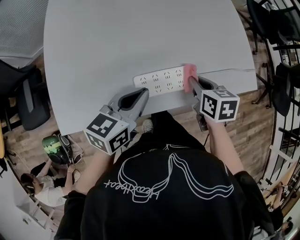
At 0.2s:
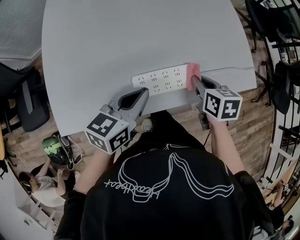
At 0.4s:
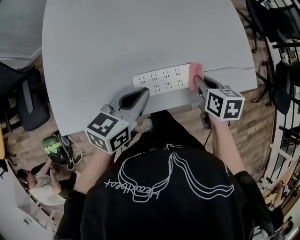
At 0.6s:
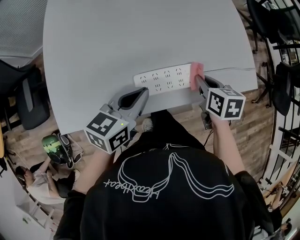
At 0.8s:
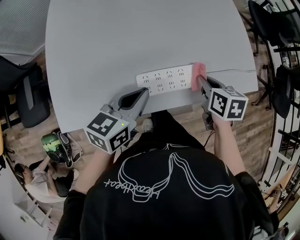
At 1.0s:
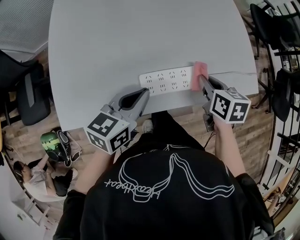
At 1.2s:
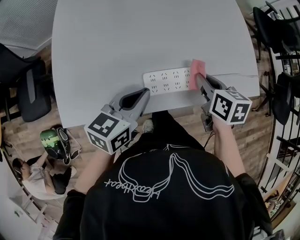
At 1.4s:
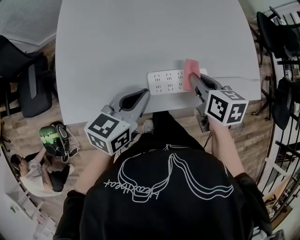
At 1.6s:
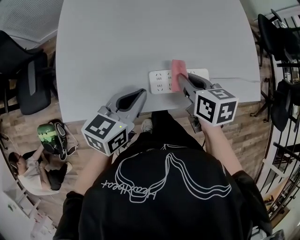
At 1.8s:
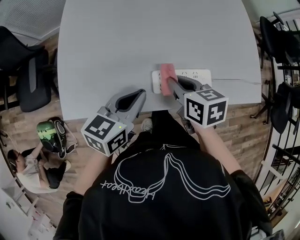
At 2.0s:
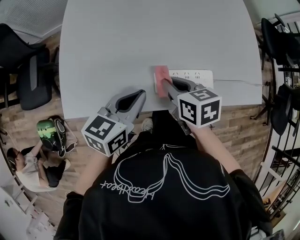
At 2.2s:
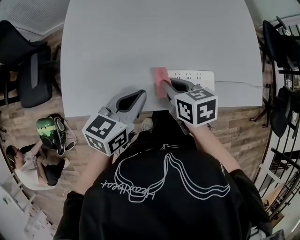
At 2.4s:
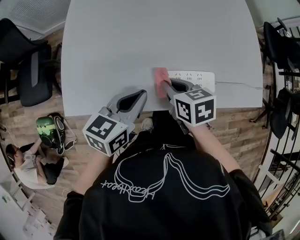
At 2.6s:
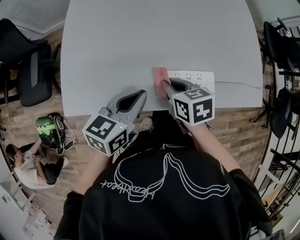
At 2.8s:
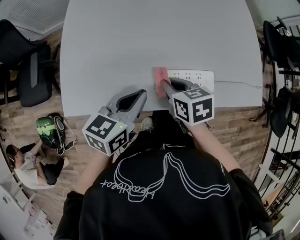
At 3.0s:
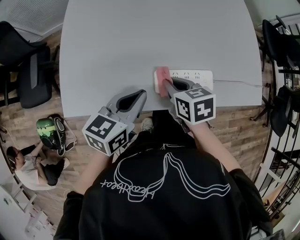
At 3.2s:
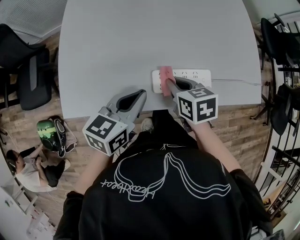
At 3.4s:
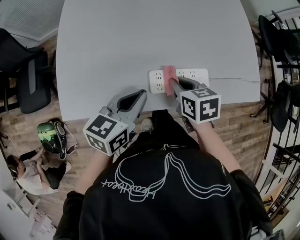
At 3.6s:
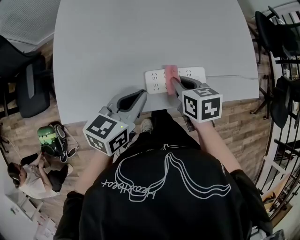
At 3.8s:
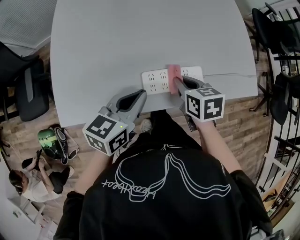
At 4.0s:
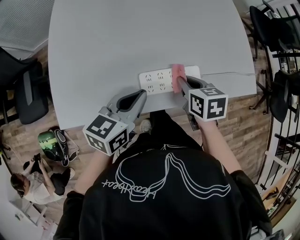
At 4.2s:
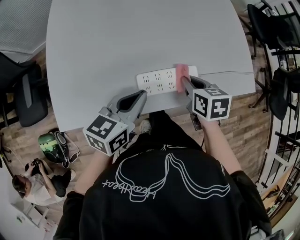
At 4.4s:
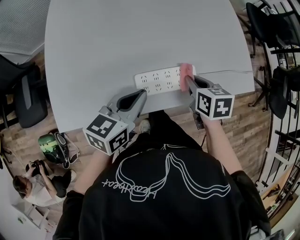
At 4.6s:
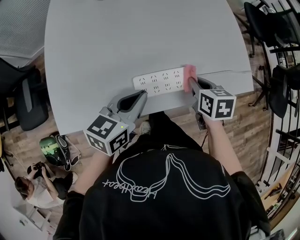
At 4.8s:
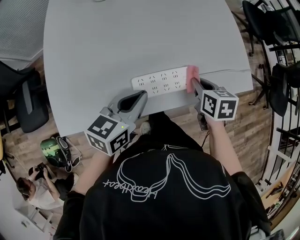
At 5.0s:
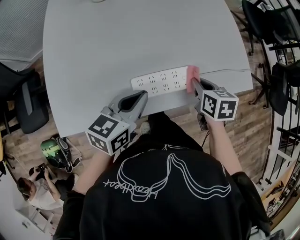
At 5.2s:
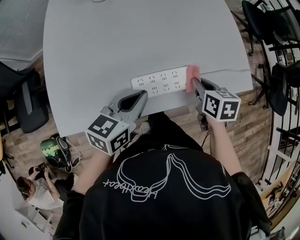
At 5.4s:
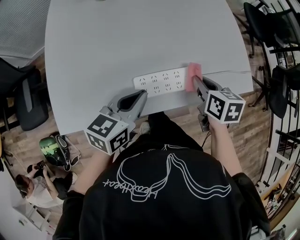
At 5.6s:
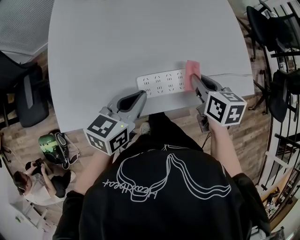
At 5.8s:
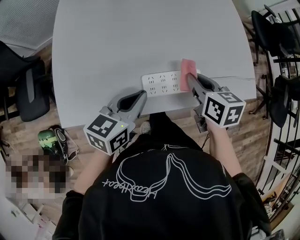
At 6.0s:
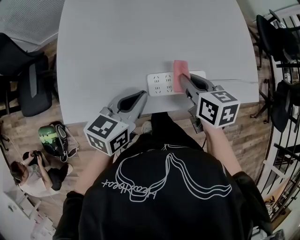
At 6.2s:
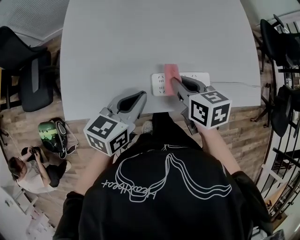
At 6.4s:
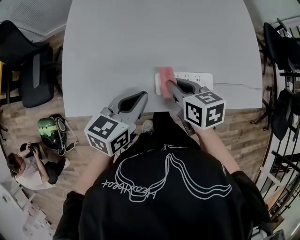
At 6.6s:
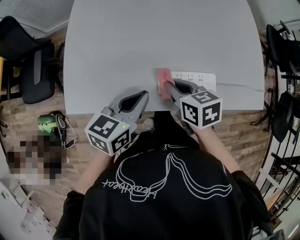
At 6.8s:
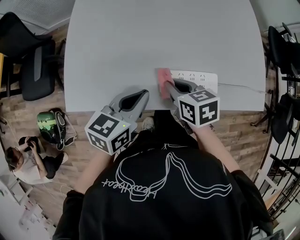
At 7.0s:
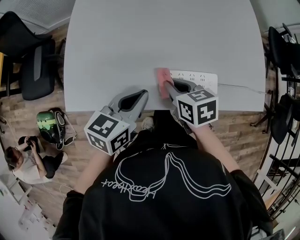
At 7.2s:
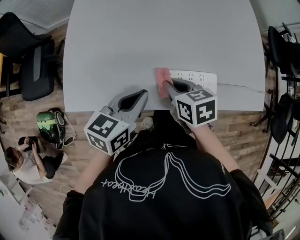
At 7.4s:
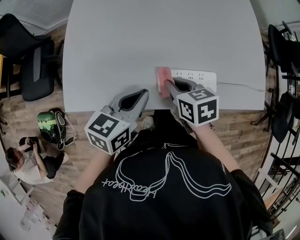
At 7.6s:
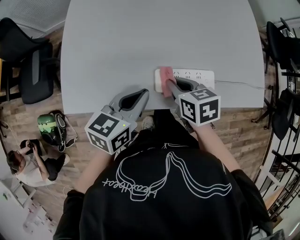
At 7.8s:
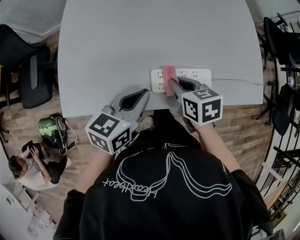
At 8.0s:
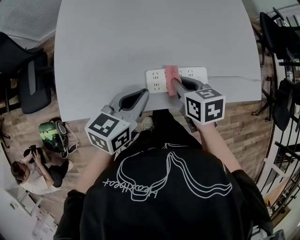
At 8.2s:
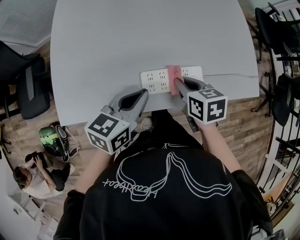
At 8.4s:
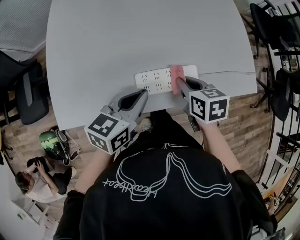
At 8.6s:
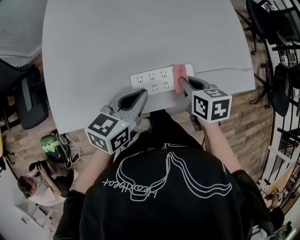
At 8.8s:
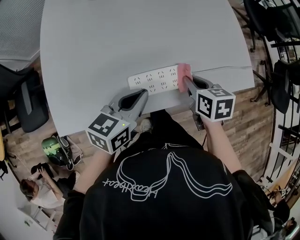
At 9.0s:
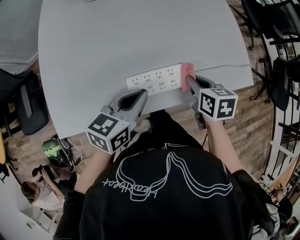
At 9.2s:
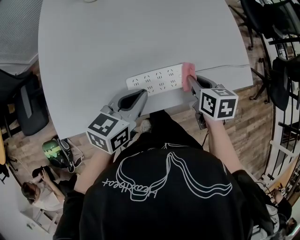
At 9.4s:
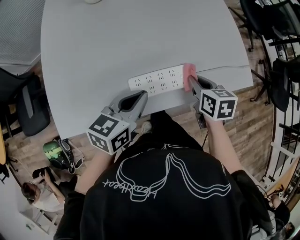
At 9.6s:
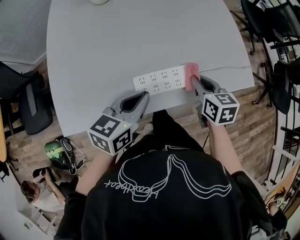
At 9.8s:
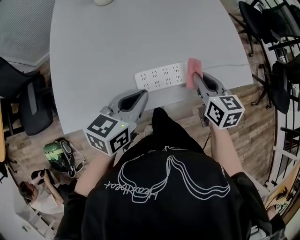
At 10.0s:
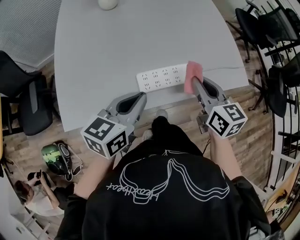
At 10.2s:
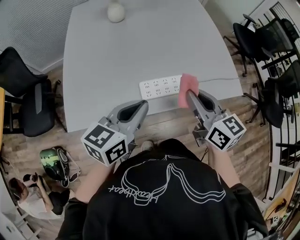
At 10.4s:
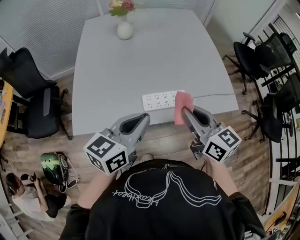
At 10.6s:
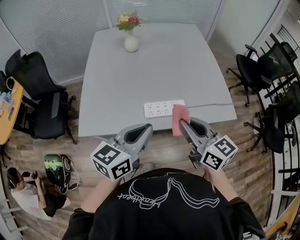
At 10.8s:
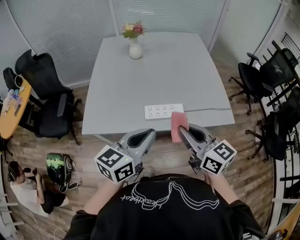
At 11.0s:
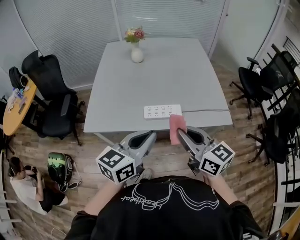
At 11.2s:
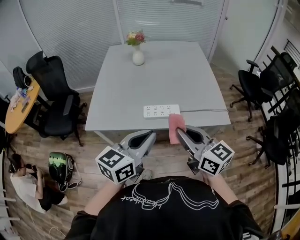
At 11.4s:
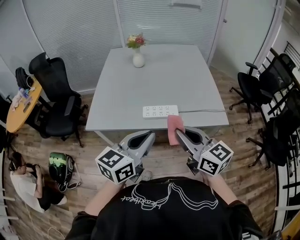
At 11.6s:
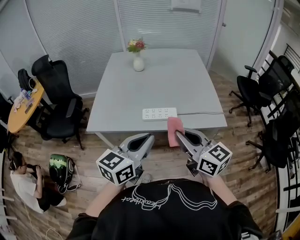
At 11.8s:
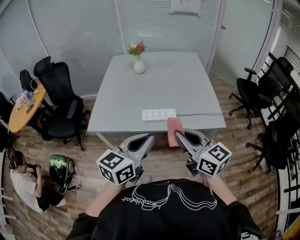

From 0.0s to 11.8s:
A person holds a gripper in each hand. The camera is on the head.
From 0.0s to 1.4s: The right gripper shifts by some 5 cm.
From 1.4s to 3.0s: The right gripper moves to the left, about 10 cm.
From 3.0s to 4.4s: The left gripper goes roughly 5 cm to the right, while the right gripper heads to the right, covering approximately 15 cm.
From 4.4s to 6.0s: The right gripper shifts roughly 10 cm to the left and upward.
From 6.0s to 7.4s: The right gripper moves to the left and downward, roughly 10 cm.
From 7.4s to 8.8s: The left gripper travels to the right by about 10 cm. Meanwhile the right gripper heads to the right, covering about 15 cm, and turns by about 20 degrees.
From 8.8s to 10.4s: Both grippers travel together upward and backward, roughly 25 cm. The right gripper tilts its fingers approximately 40 degrees upward.
From 10.4s to 11.8s: The left gripper goes roughly 25 cm backward, to the right and upward. Meanwhile the right gripper heads backward and upward, covering about 20 cm.

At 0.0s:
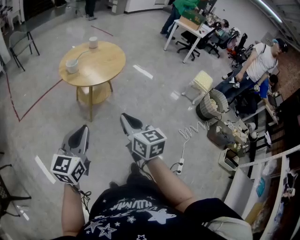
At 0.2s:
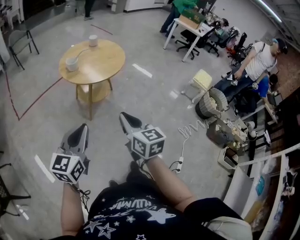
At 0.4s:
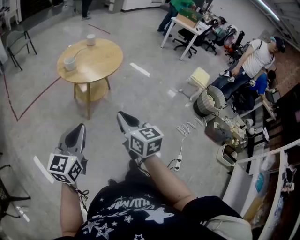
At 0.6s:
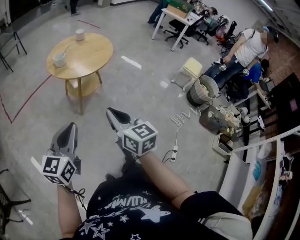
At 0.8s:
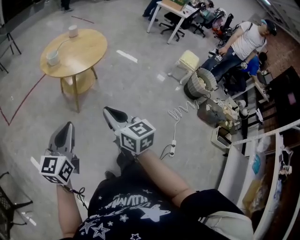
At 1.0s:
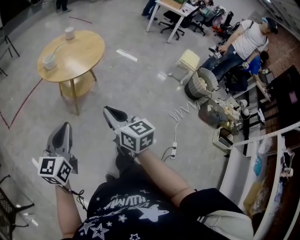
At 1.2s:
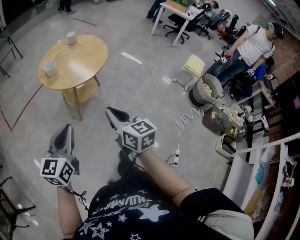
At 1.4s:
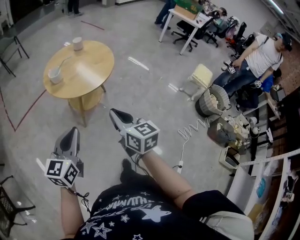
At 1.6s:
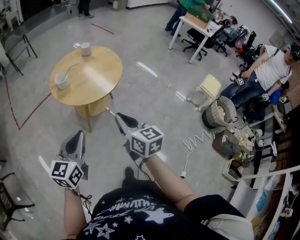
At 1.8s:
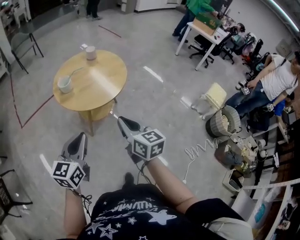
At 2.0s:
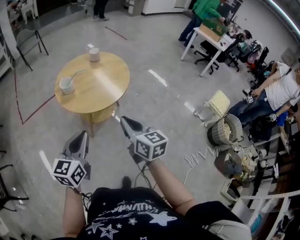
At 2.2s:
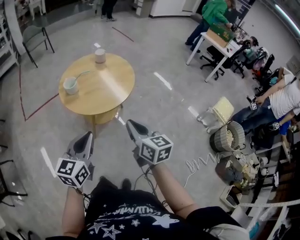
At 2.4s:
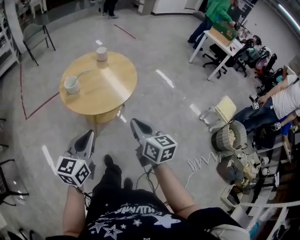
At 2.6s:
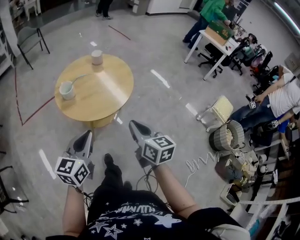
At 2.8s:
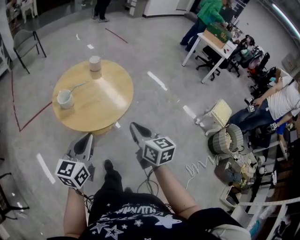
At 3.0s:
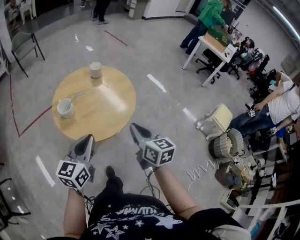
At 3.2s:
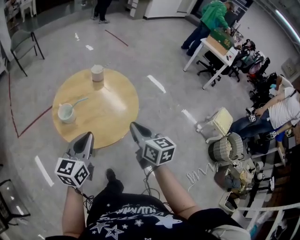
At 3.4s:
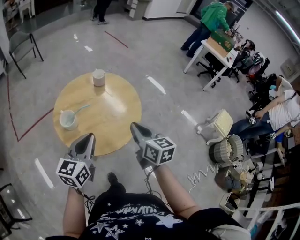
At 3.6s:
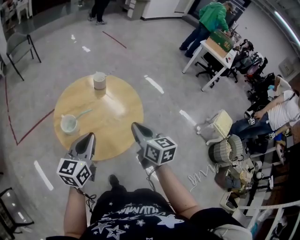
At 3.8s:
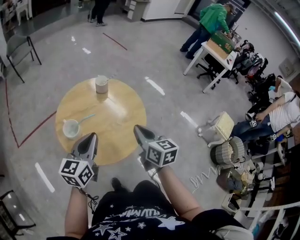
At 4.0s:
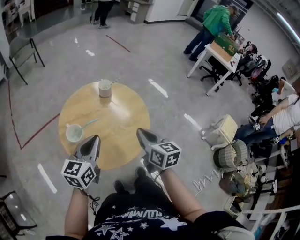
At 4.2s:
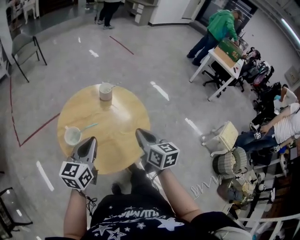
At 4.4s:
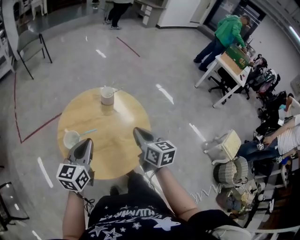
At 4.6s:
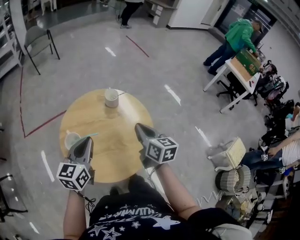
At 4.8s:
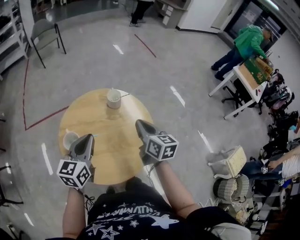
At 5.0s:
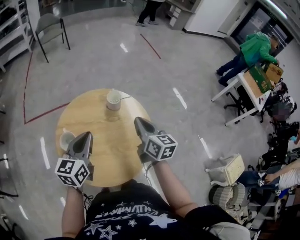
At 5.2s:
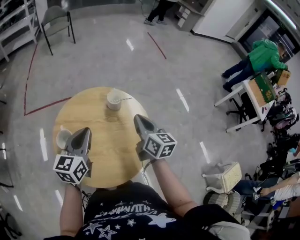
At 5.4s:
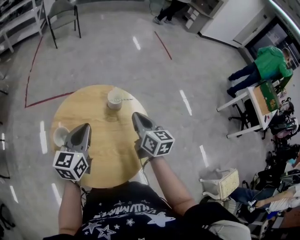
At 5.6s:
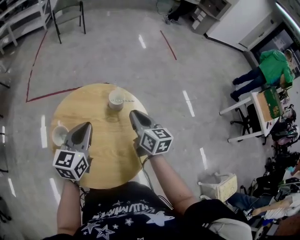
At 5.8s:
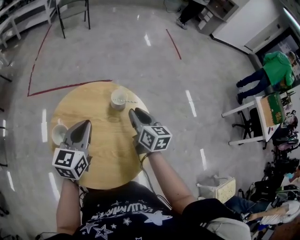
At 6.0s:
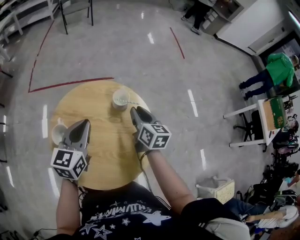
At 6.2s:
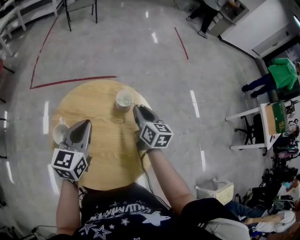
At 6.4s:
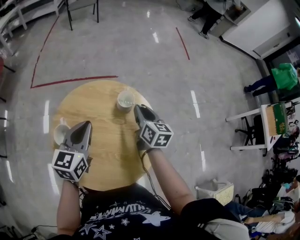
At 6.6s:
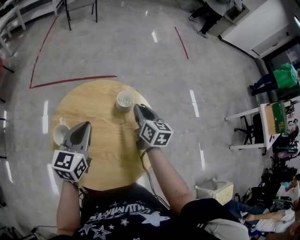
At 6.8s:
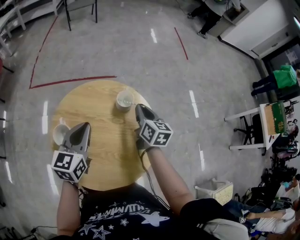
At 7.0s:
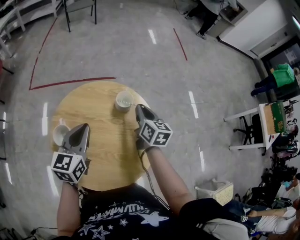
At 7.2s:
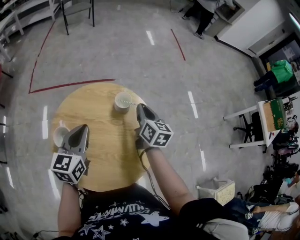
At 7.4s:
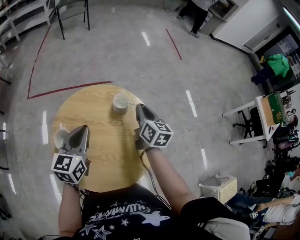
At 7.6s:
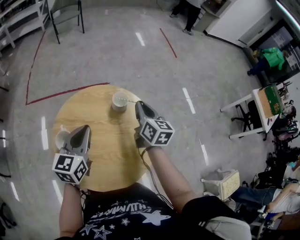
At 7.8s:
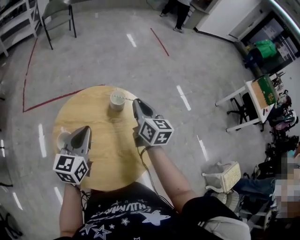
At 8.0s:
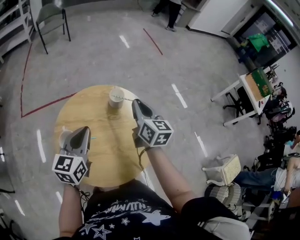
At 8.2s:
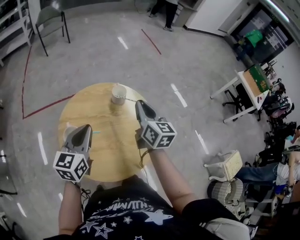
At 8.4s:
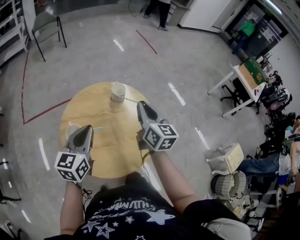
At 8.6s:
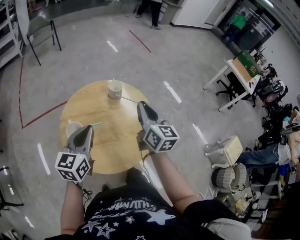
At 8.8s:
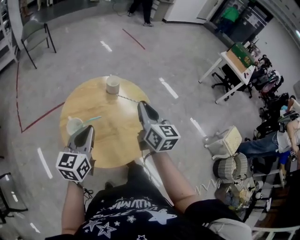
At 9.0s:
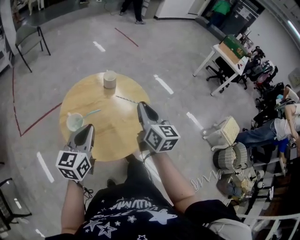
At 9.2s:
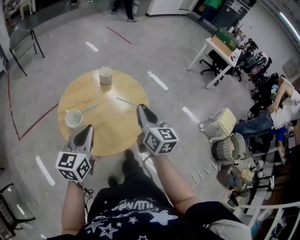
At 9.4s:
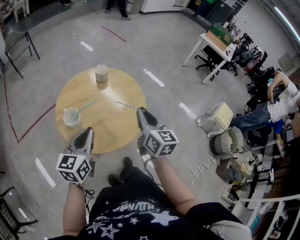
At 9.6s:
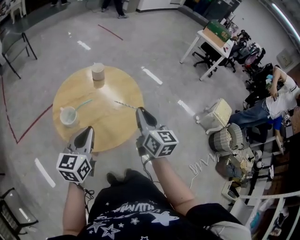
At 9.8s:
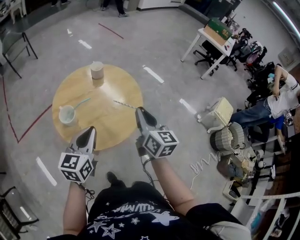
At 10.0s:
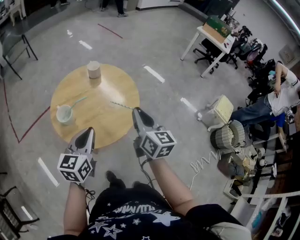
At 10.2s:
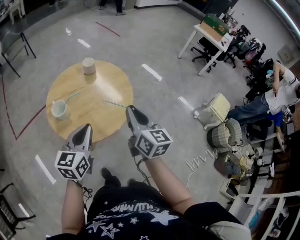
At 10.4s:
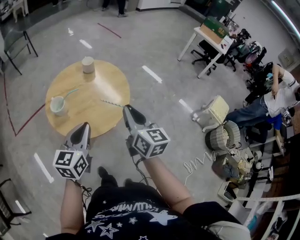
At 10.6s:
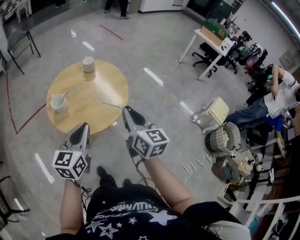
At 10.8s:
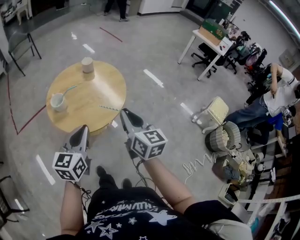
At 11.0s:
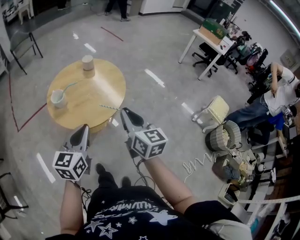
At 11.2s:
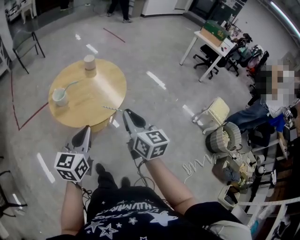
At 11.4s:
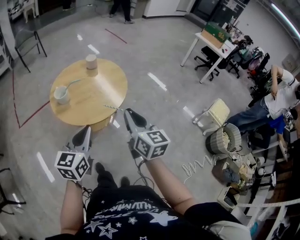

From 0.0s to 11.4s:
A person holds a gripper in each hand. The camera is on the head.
From 0.0s to 1.4s: The grippers both shift forward by roughly 15 cm.
From 1.4s to 2.8s: Both grippers move forward, approximately 20 cm.
From 2.8s to 4.2s: Both grippers travel together forward, about 25 cm.
From 4.2s to 5.6s: The right gripper shifts by some 30 cm, and changes its angle by about 20 degrees. Meanwhile the left gripper moves approximately 20 cm, and turns by roughly 30 degrees.
From 5.6s to 7.2s: The right gripper is displaced forward by roughly 5 cm.
From 7.2s to 8.6s: The left gripper moves backward, approximately 10 cm, and rotates roughly 20 degrees, while the right gripper travels backward and upward by about 25 cm, and changes its angle by some 20 degrees.
From 8.6s to 10.0s: The two grippers go some 20 cm backward and to the right.
From 10.0s to 11.4s: Both grippers move backward and to the right, approximately 20 cm.

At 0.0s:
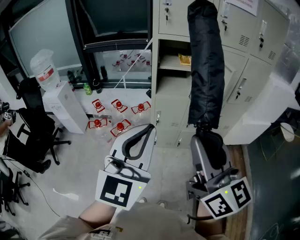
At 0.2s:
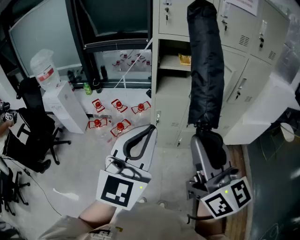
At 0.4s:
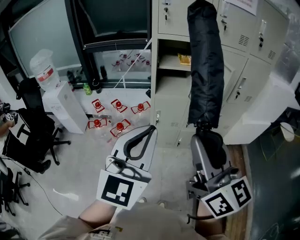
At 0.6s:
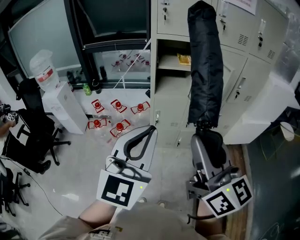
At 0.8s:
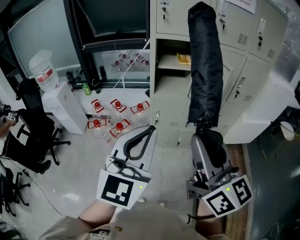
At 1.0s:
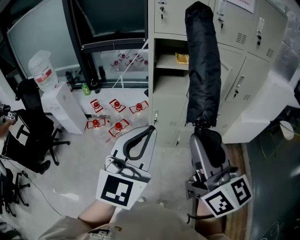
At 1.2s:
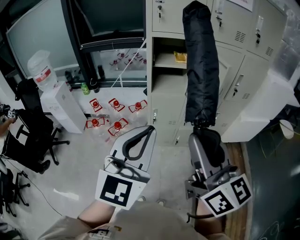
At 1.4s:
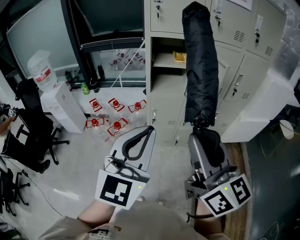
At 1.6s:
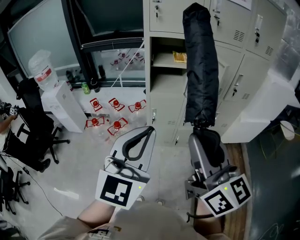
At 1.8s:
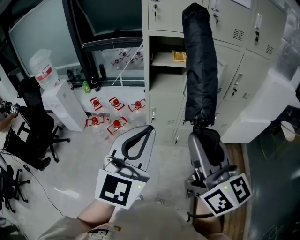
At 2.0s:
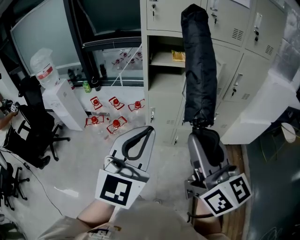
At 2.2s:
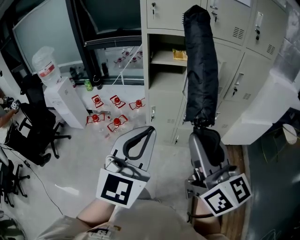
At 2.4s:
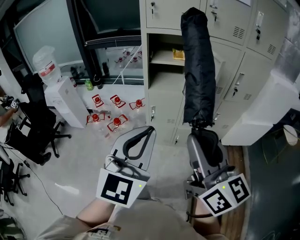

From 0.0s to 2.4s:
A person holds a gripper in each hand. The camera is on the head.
From 0.0s to 1.2s: The grippers stay close to where they were, moving slightly.
From 1.2s to 2.4s: Both grippers move to the right, roughly 5 cm.
